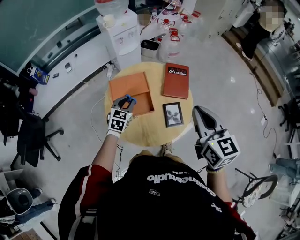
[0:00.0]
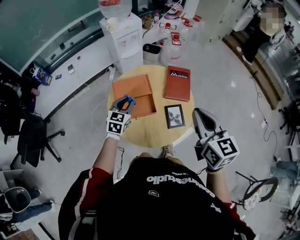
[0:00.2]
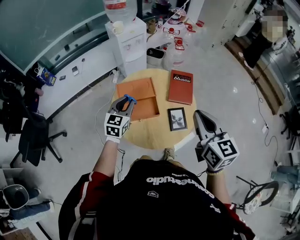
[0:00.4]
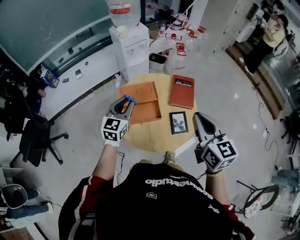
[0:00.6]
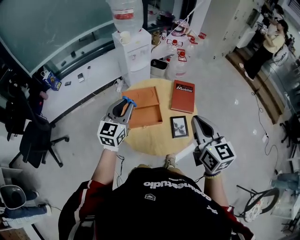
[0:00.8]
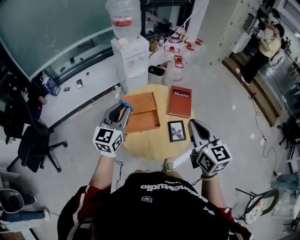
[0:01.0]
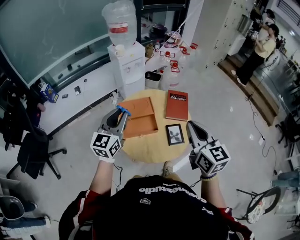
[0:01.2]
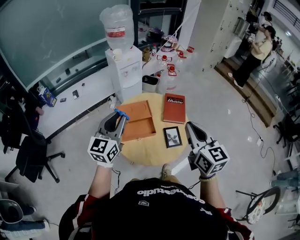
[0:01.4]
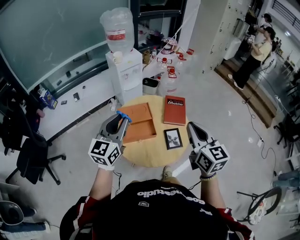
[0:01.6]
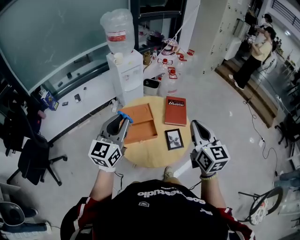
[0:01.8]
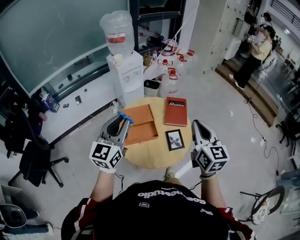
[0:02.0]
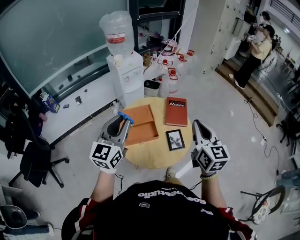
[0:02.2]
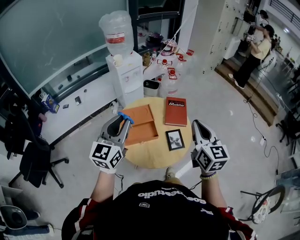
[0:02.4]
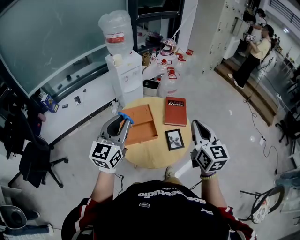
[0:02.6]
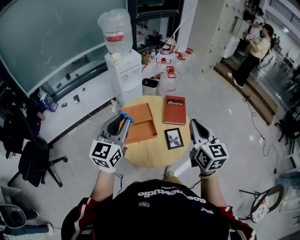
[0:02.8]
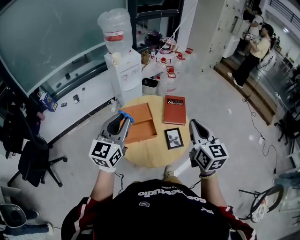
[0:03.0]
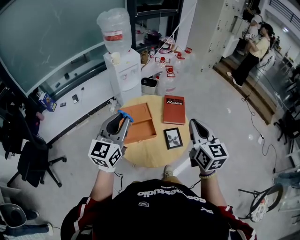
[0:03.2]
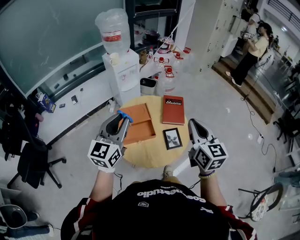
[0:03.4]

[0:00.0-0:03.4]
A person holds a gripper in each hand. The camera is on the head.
0:00.0 to 0:01.6: The right gripper changes place by some 5 cm. The left gripper shifts some 25 cm upward, and tips its fingers upward by some 30 degrees.
0:01.6 to 0:03.4: The grippers move only a little.

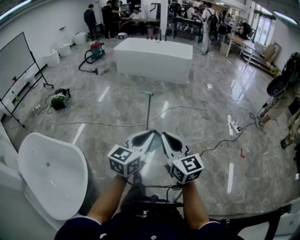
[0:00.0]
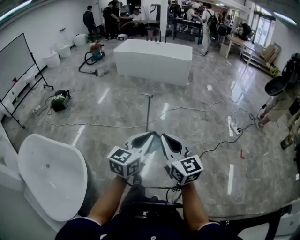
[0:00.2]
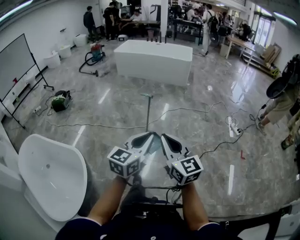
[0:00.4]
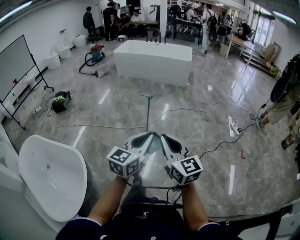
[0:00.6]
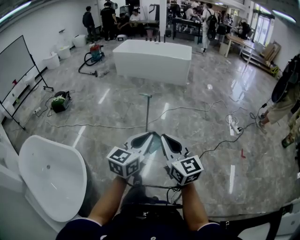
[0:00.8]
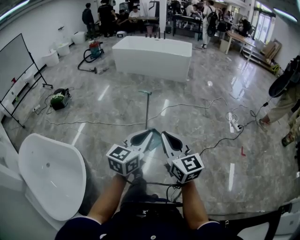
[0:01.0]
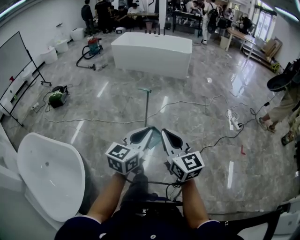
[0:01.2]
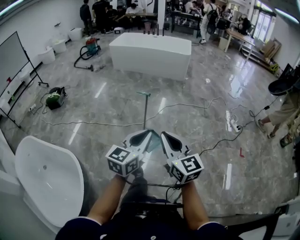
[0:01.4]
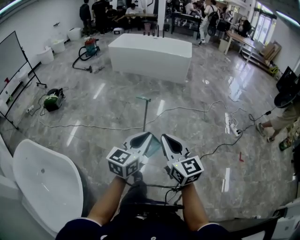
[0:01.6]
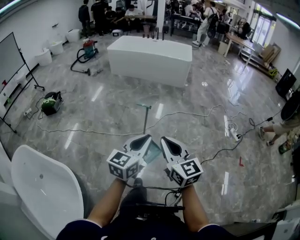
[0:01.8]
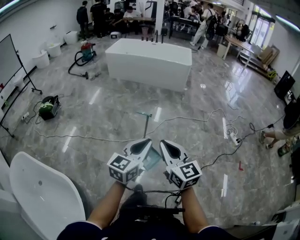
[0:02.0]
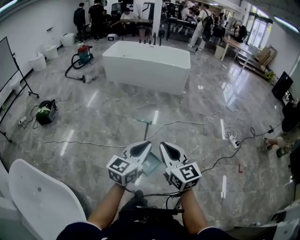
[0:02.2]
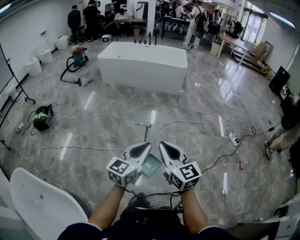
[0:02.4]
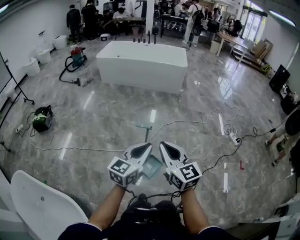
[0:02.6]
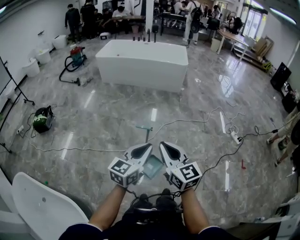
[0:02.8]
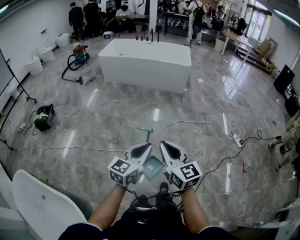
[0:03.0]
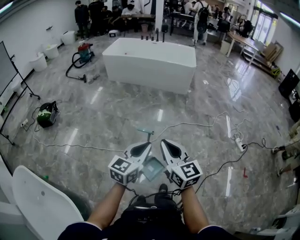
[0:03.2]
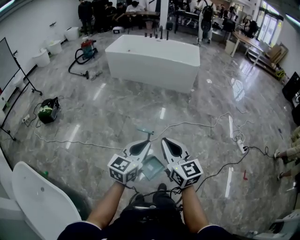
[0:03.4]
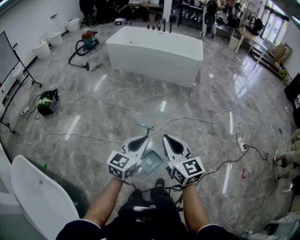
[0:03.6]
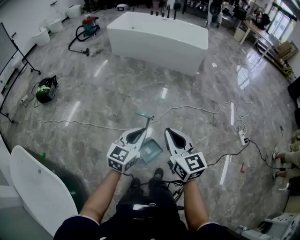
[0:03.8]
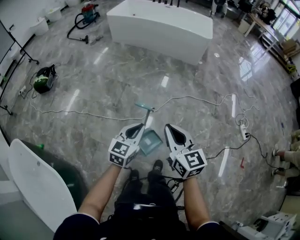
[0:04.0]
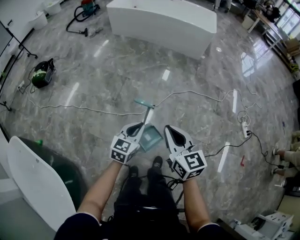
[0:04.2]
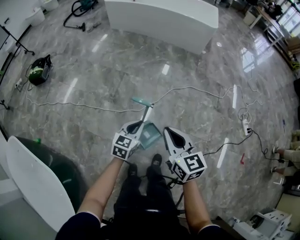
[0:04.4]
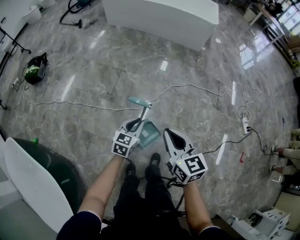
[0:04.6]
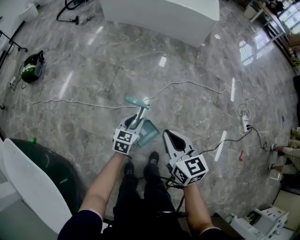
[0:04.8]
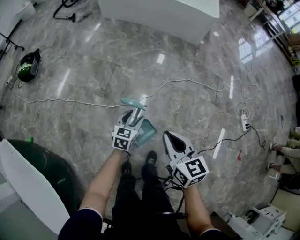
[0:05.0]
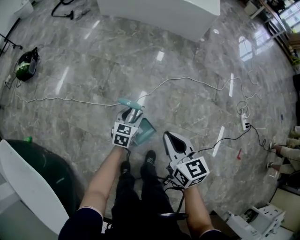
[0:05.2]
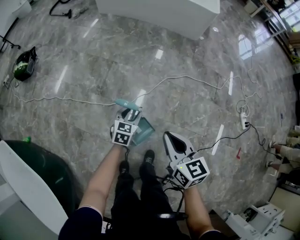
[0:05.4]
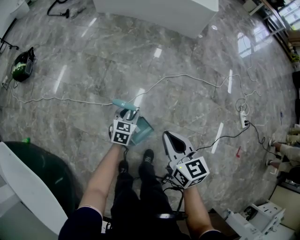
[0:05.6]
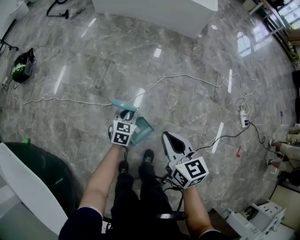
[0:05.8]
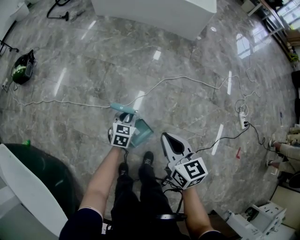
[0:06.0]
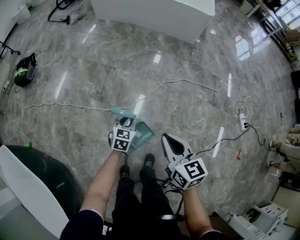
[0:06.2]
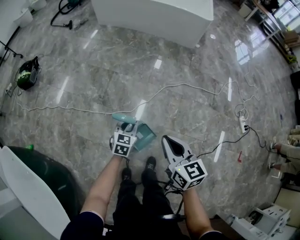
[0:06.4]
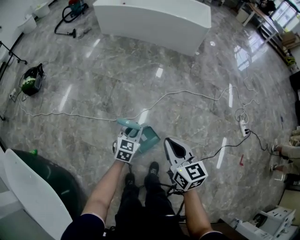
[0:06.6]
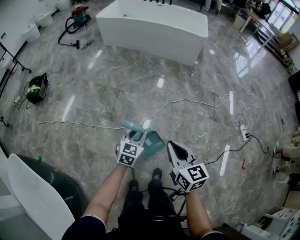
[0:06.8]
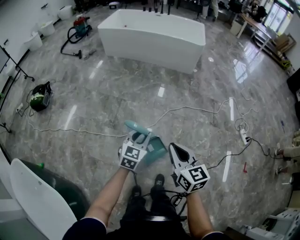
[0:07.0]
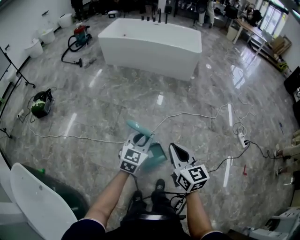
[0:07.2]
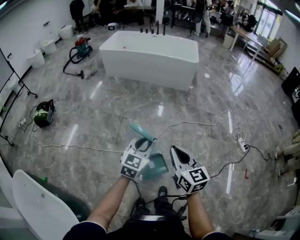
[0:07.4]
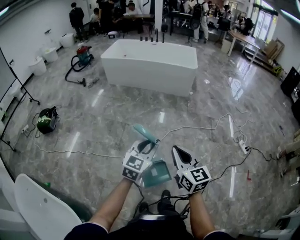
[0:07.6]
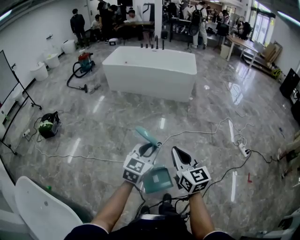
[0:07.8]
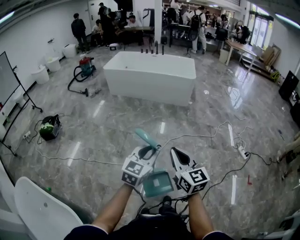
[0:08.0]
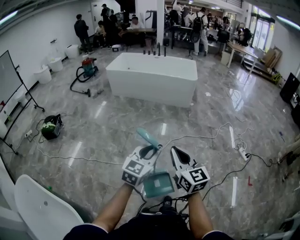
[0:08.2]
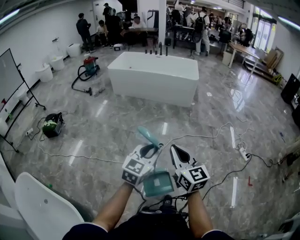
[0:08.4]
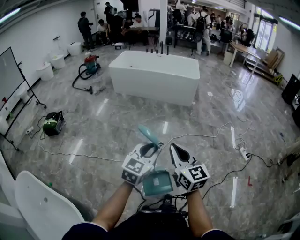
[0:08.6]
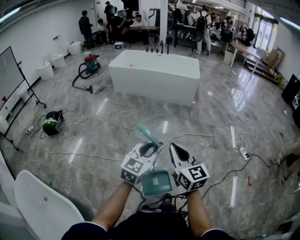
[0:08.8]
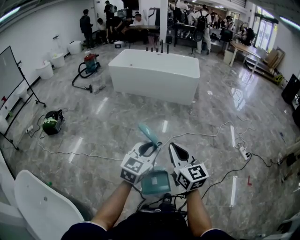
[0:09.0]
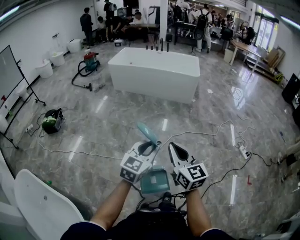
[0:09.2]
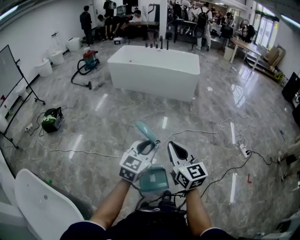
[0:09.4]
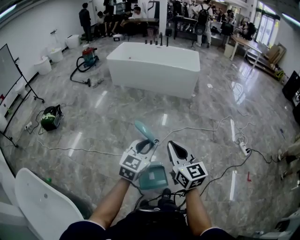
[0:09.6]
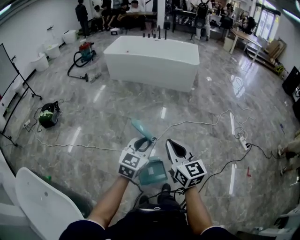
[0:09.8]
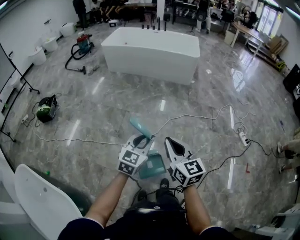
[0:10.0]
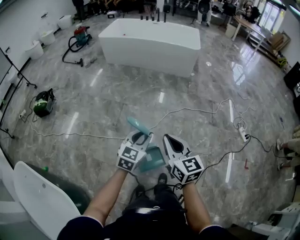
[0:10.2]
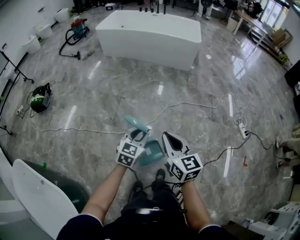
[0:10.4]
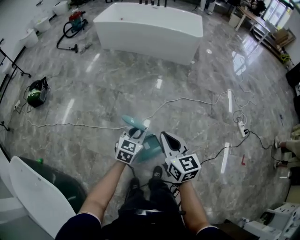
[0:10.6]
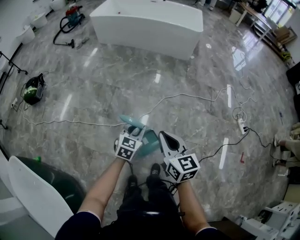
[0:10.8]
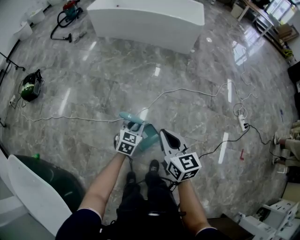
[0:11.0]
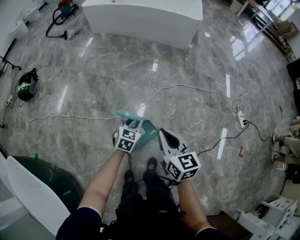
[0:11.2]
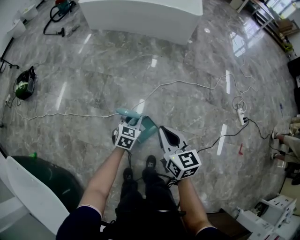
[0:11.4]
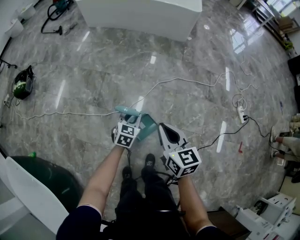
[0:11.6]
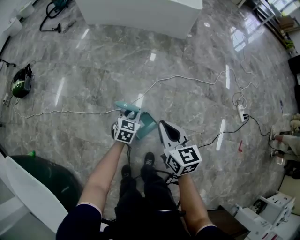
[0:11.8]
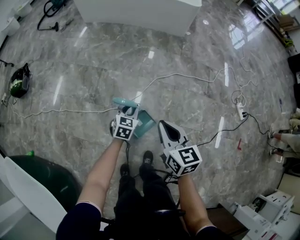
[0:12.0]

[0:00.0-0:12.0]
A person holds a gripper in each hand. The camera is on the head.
0:00.0 to 0:01.6: Both grippers travel together forward, roughly 15 cm.
0:01.6 to 0:03.0: Both grippers move forward, some 25 cm.
0:03.0 to 0:04.4: The two grippers go roughly 25 cm downward and forward. The left gripper rotates some 20 degrees.
0:04.4 to 0:06.0: The right gripper heads downward, to the right and forward, covering roughly 10 cm. Meanwhile the left gripper shifts roughly 20 cm downward and forward, and opens and closes again.
0:06.0 to 0:07.6: The left gripper travels upward by approximately 40 cm, and rotates about 30 degrees. The right gripper travels upward and backward by approximately 25 cm, and turns by some 20 degrees.
0:07.6 to 0:09.0: The grippers both shift backward and upward by about 10 cm.
0:09.0 to 0:10.4: The two grippers go roughly 20 cm downward and forward.
0:10.4 to 0:12.0: The right gripper is displaced downward, forward and to the right by about 20 cm. The left gripper moves downward and forward, approximately 30 cm.

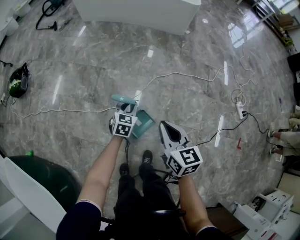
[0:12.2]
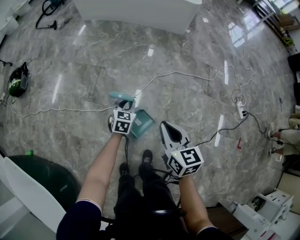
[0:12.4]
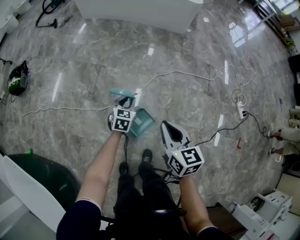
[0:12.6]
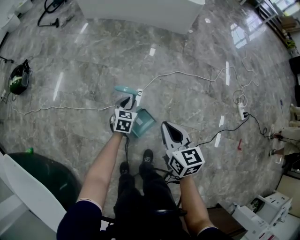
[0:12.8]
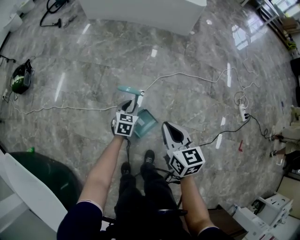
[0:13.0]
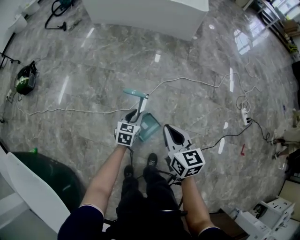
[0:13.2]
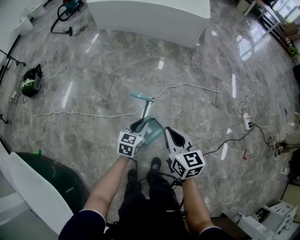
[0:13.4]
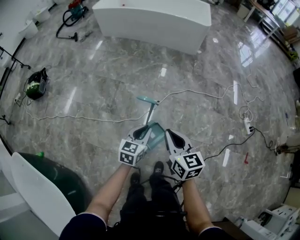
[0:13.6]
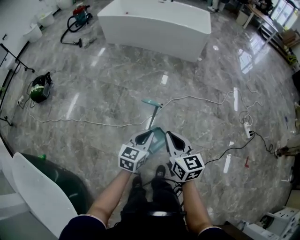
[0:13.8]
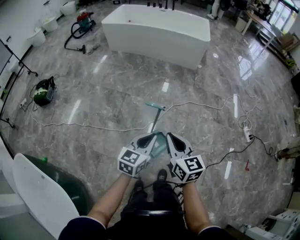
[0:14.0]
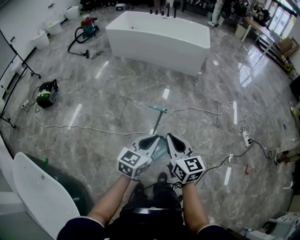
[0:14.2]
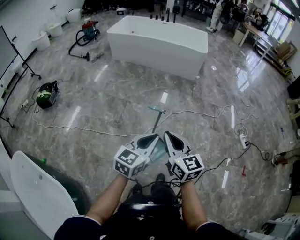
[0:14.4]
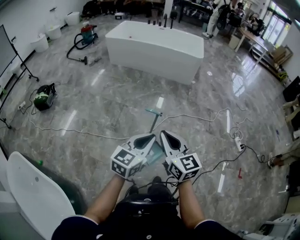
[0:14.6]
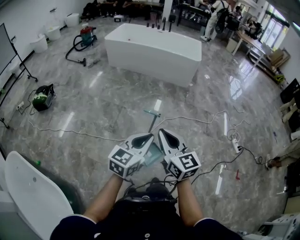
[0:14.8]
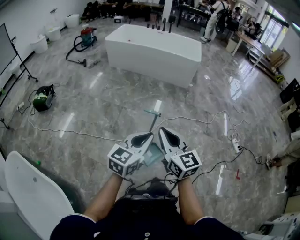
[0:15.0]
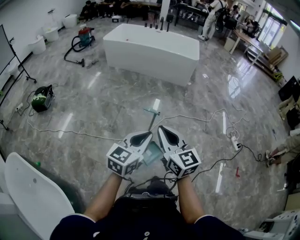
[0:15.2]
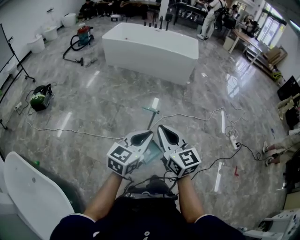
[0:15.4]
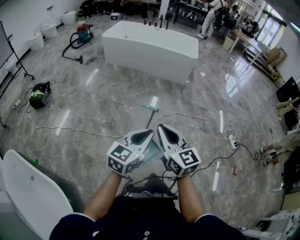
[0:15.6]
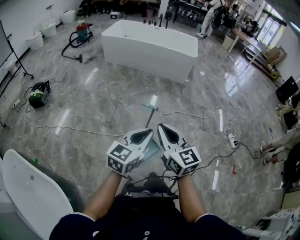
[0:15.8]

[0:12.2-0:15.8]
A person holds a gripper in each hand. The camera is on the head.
0:12.2 to 0:14.0: The right gripper heads upward, to the left and backward, covering some 20 cm. Meanwhile the left gripper travels upward and backward by some 30 cm, and swivels approximately 20 degrees.
0:14.0 to 0:15.8: Both grippers travel together upward and backward, about 15 cm.

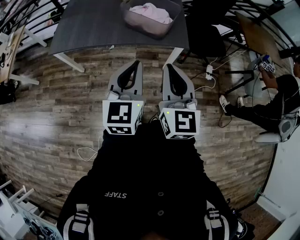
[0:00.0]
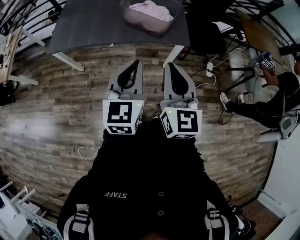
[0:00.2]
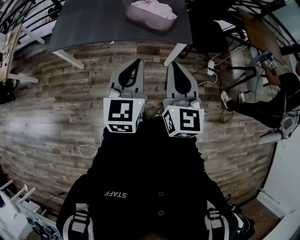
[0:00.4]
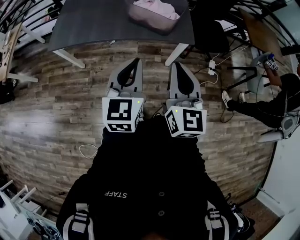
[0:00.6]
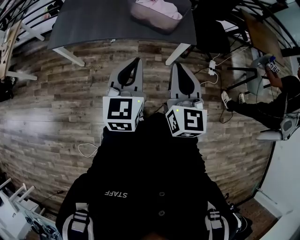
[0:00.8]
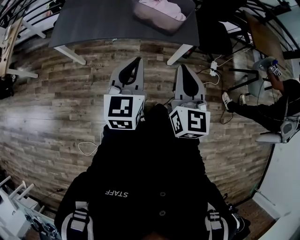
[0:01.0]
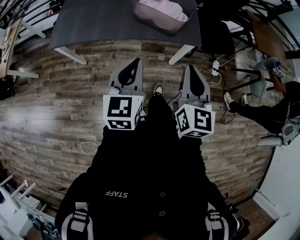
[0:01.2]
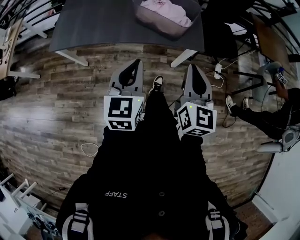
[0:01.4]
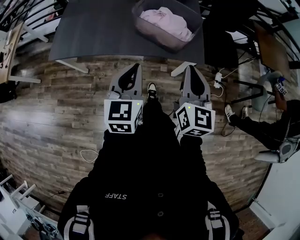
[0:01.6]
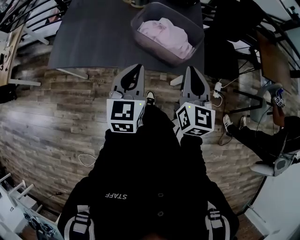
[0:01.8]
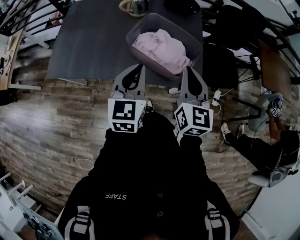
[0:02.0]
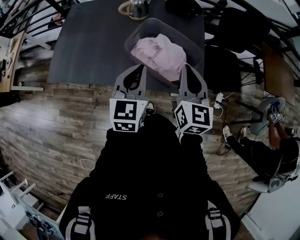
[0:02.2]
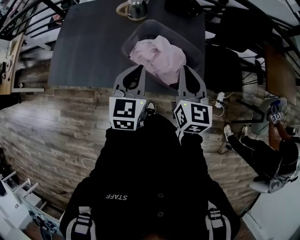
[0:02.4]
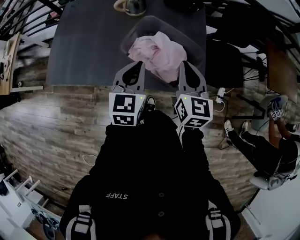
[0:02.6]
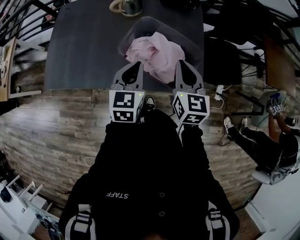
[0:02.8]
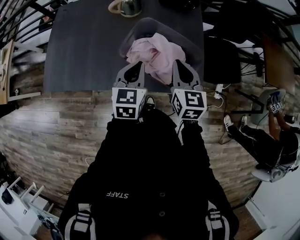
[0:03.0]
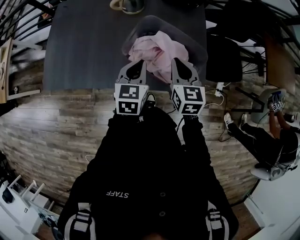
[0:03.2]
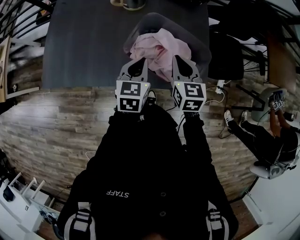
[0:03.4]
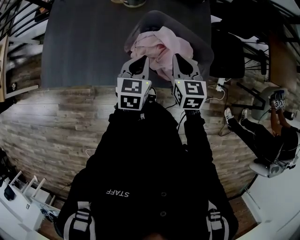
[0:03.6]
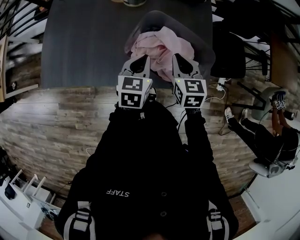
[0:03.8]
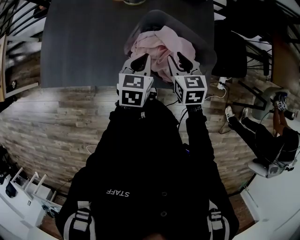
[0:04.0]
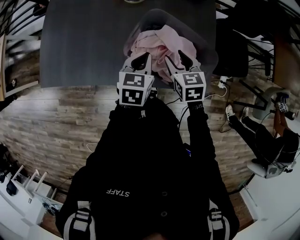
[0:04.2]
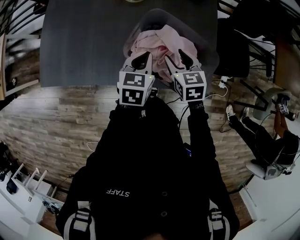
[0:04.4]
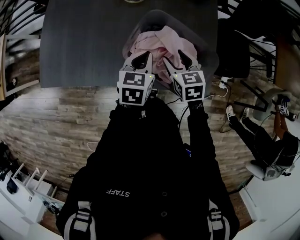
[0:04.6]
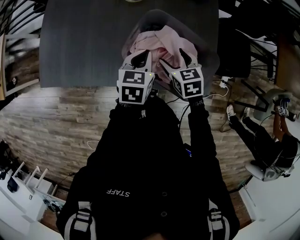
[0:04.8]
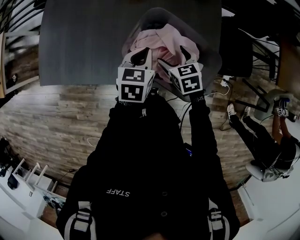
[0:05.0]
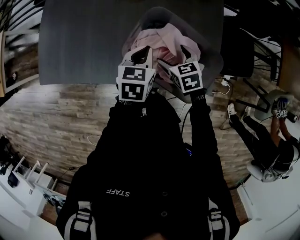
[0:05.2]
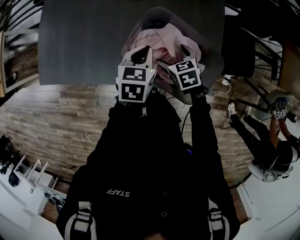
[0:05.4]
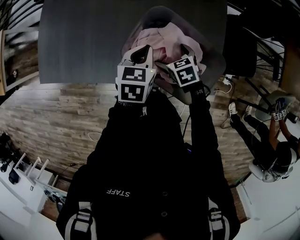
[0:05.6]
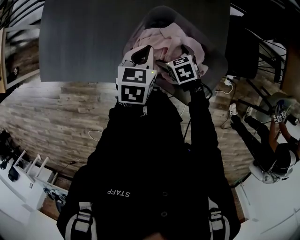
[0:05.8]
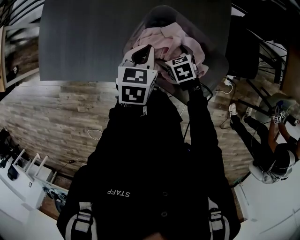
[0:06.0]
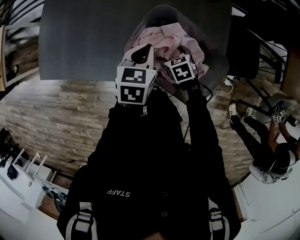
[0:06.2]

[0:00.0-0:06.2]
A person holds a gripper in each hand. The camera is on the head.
0:00.0 to 0:01.6: The left gripper is displaced forward, to the left and downward by about 20 cm, while the right gripper heads forward, covering some 20 cm.
0:01.6 to 0:03.2: Both grippers travel together forward, about 30 cm. The right gripper turns by about 20 degrees.
0:03.2 to 0:04.6: The left gripper shifts about 10 cm forward and downward. Meanwhile the right gripper moves downward and forward, roughly 10 cm, changes its angle by about 20 degrees, and opens.
0:04.6 to 0:06.2: The right gripper travels downward by roughly 15 cm, swivels about 20 degrees, and opens up.
